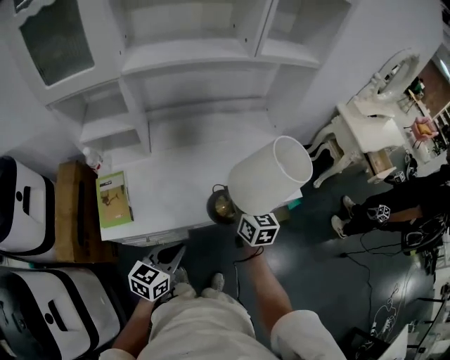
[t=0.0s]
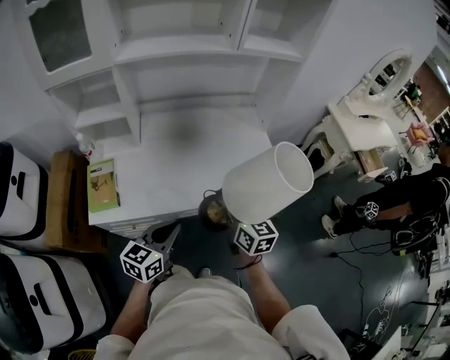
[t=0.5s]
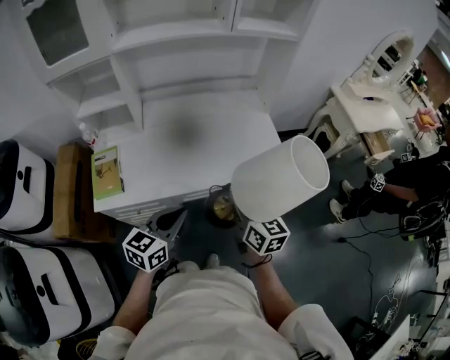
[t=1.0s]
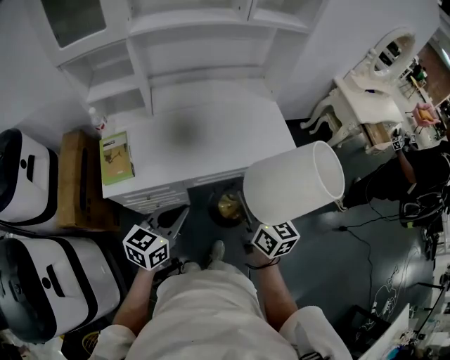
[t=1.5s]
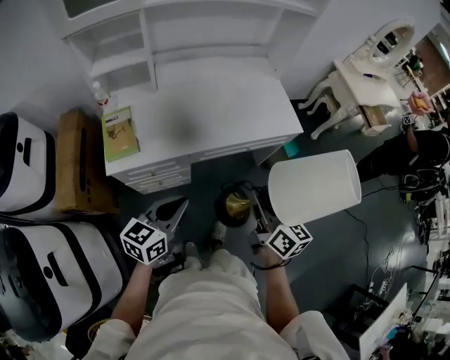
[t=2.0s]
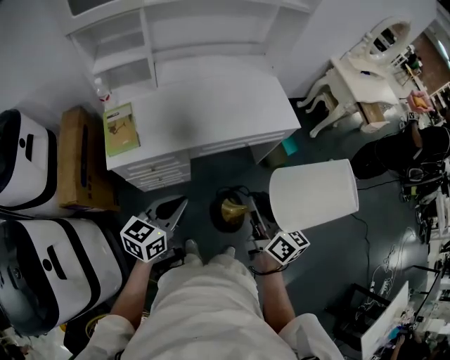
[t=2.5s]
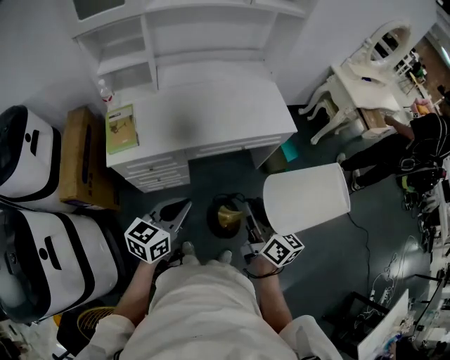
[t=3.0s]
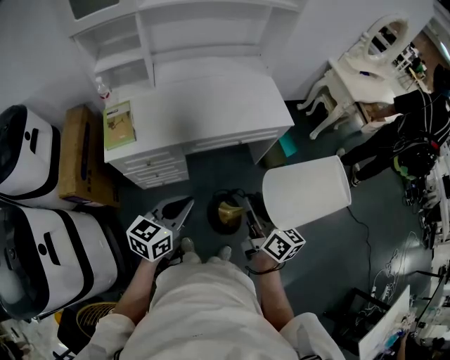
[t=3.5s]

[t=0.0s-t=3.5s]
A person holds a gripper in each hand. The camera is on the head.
t=0.0s to t=2.0s: The right gripper goes approximately 30 cm backward, while the left gripper shifts approximately 15 cm backward.
t=2.0s to t=3.5s: The right gripper goes roughly 10 cm backward and to the right, while the left gripper heads to the right and backward, covering about 10 cm.

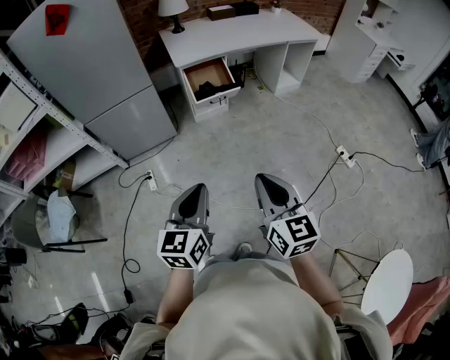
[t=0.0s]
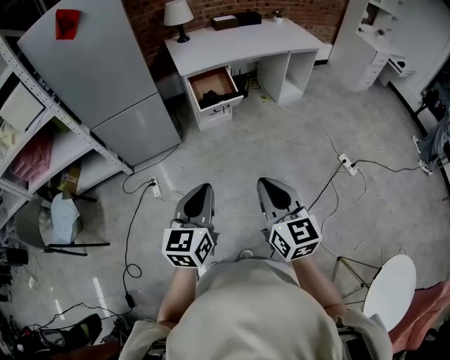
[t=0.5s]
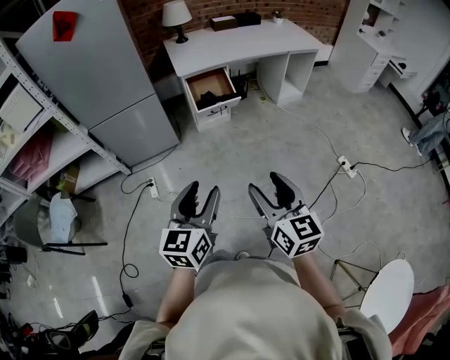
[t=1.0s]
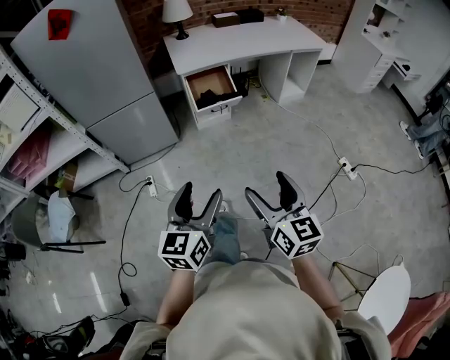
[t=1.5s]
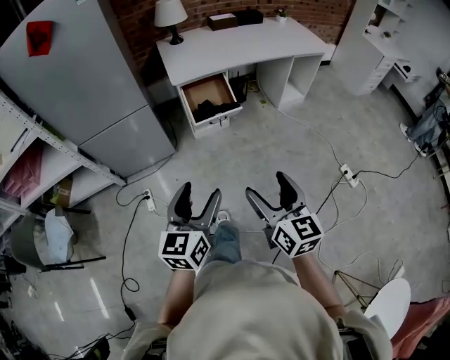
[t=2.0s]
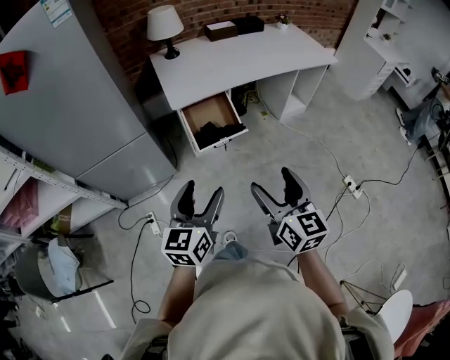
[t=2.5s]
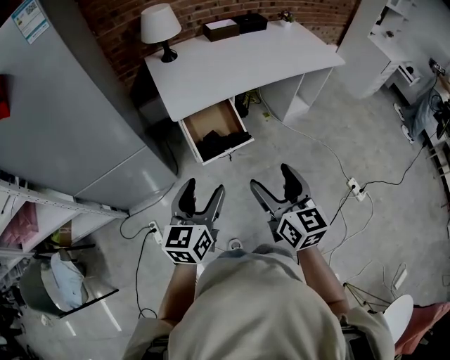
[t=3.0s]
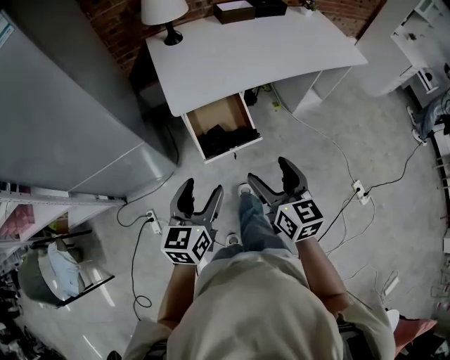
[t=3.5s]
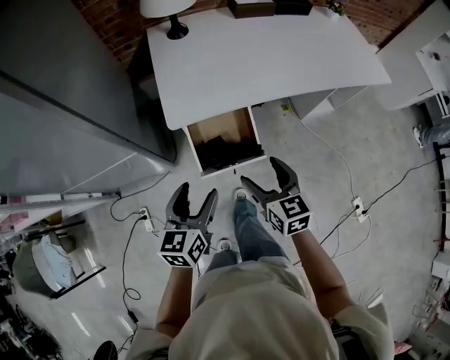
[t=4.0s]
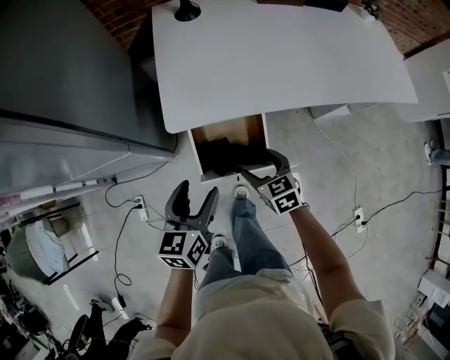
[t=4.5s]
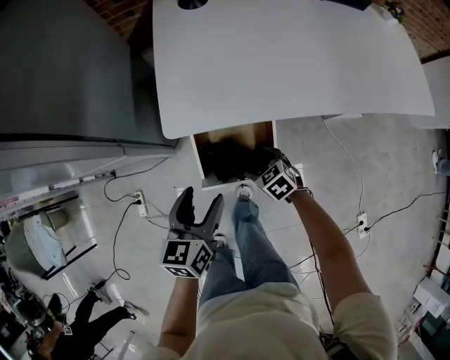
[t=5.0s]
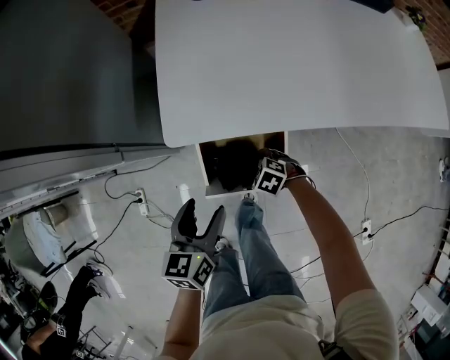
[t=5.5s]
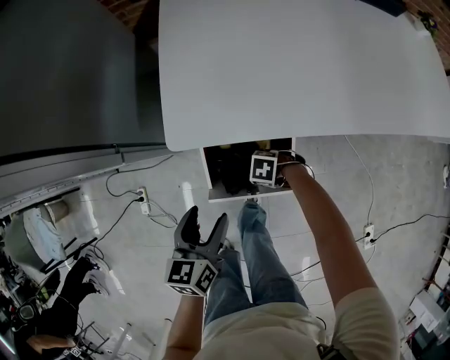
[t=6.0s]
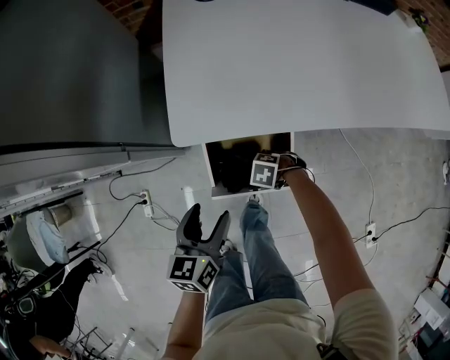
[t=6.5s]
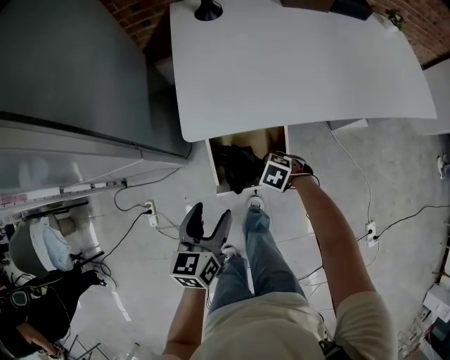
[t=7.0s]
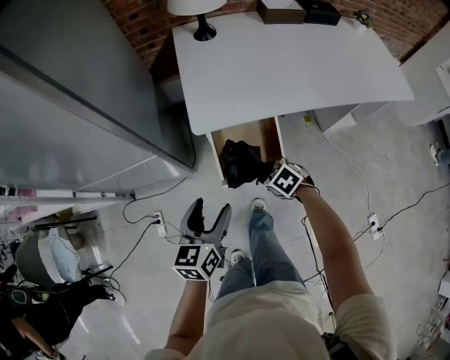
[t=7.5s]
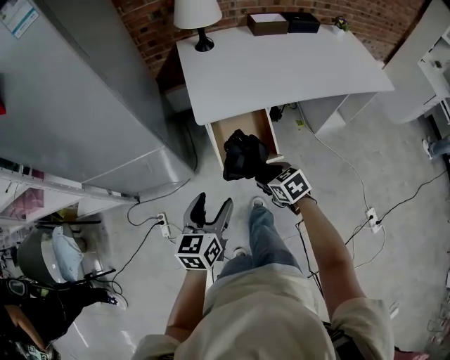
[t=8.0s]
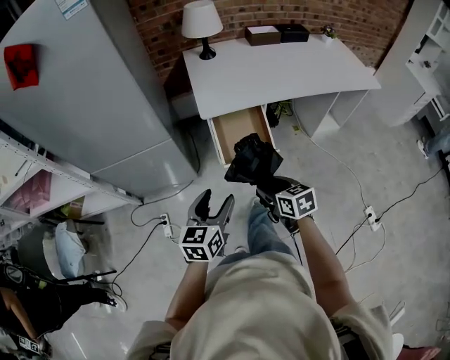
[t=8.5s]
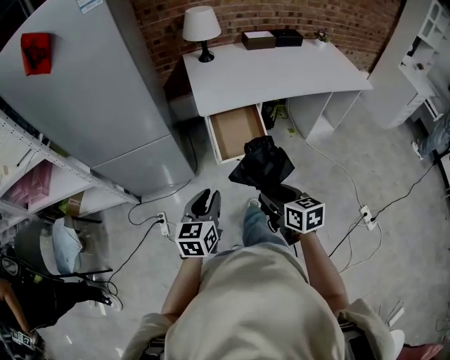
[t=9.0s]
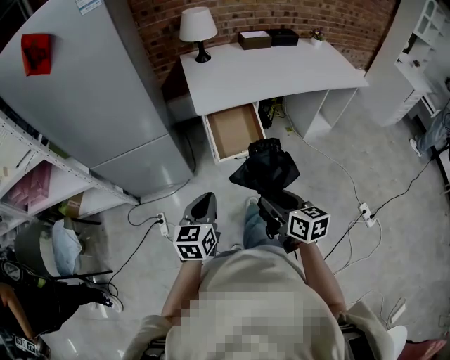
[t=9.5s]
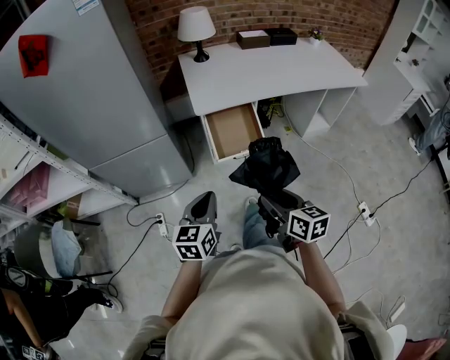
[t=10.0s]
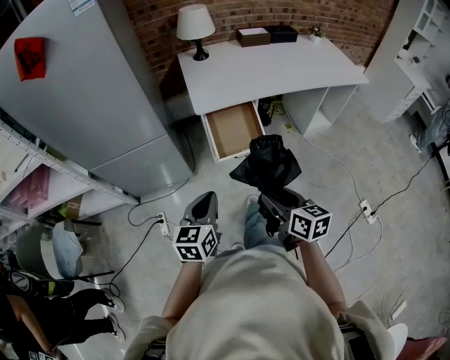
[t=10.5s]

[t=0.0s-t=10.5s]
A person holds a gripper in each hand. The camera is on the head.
t=0.0s to t=2.0s: The grippers both shift forward by some 15 cm. The right gripper opens its fingers. Meanwhile the left gripper opens its fingers.
t=2.0s to t=4.0s: The pair of grippers is taken forward, roughly 50 cm. The right gripper rotates some 20 degrees.
t=4.0s to t=6.5s: The right gripper goes about 35 cm downward, tilts its fingers approximately 50 degrees downward, and closes up, while the left gripper is displaced downward by some 15 cm.
t=6.5s to t=8.5s: The left gripper changes place by about 30 cm, and rotates roughly 20 degrees. Meanwhile the right gripper is displaced upward by roughly 35 cm, and tips its fingers upward by roughly 40 degrees.
t=8.5s to t=10.5s: The right gripper is displaced backward and upward by approximately 15 cm, and swivels some 20 degrees. Meanwhile the left gripper moves backward, about 5 cm, and closes up.

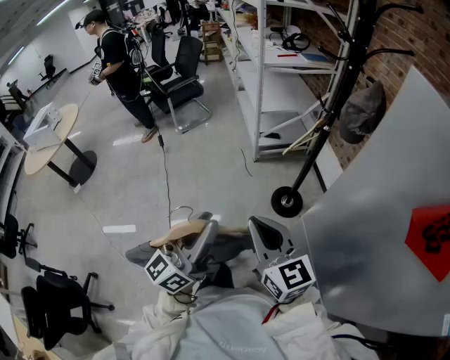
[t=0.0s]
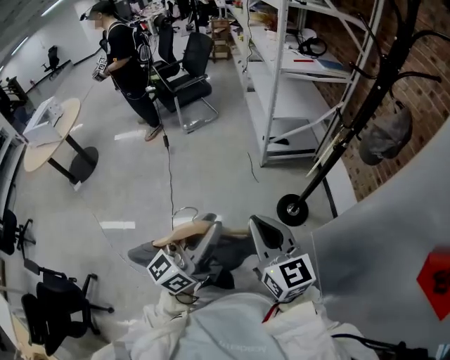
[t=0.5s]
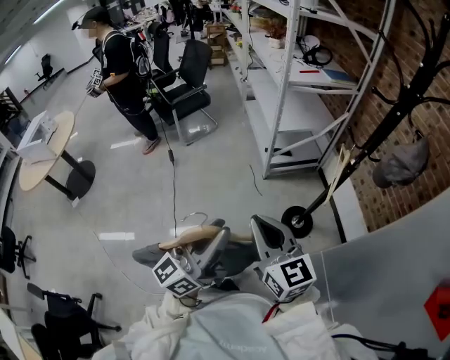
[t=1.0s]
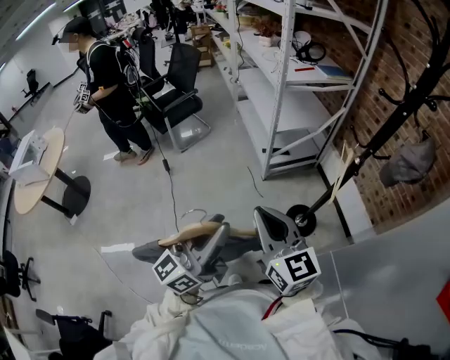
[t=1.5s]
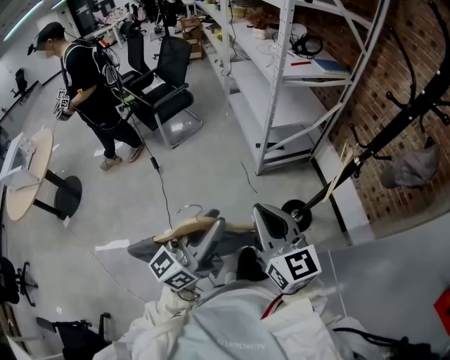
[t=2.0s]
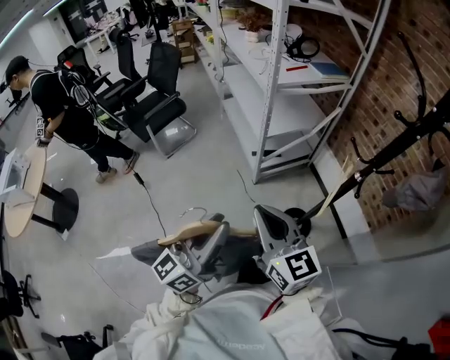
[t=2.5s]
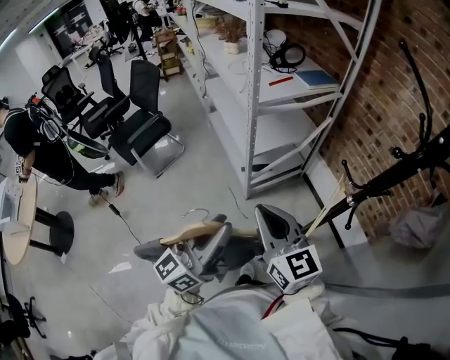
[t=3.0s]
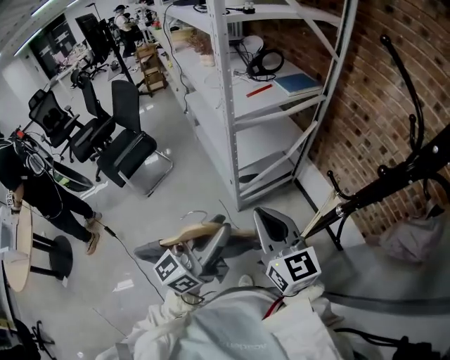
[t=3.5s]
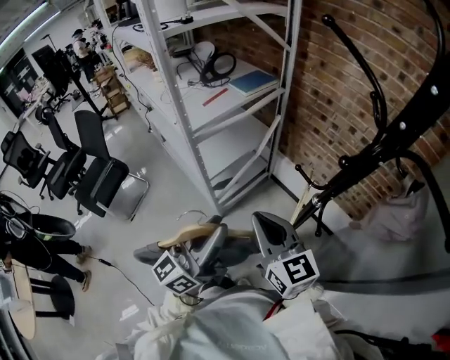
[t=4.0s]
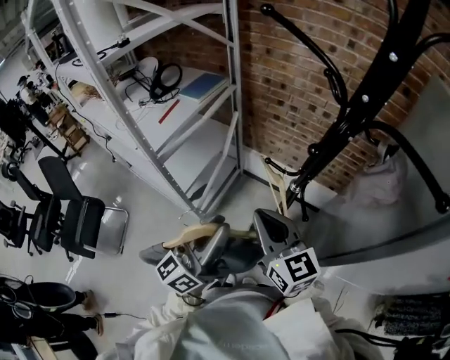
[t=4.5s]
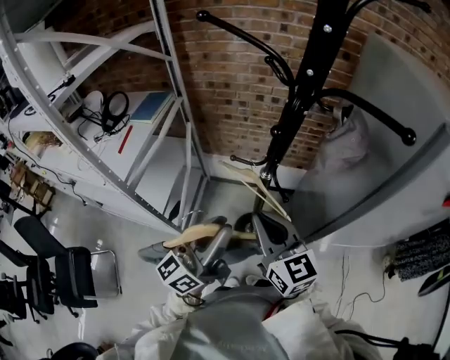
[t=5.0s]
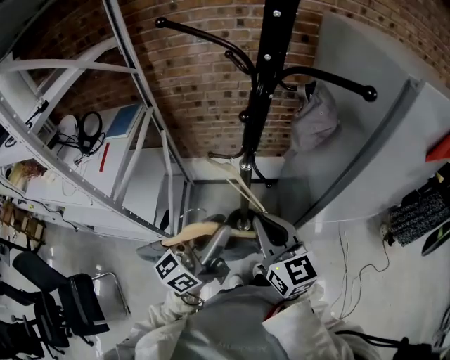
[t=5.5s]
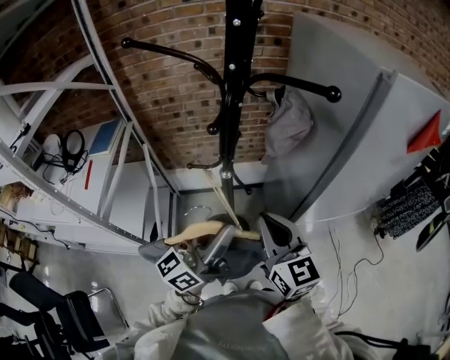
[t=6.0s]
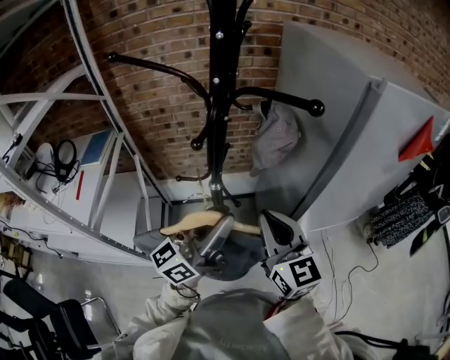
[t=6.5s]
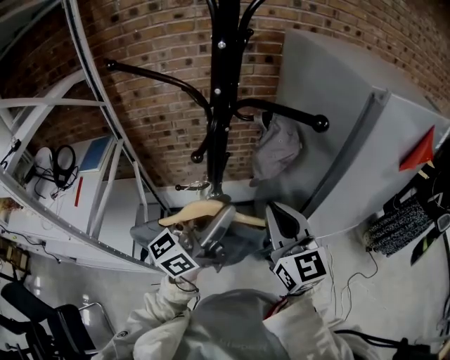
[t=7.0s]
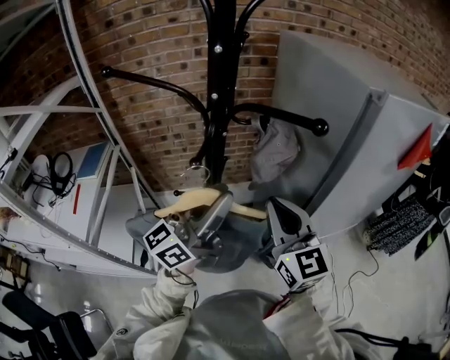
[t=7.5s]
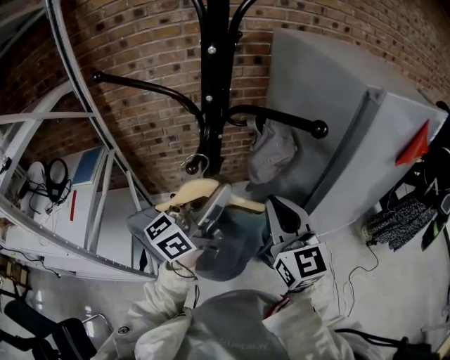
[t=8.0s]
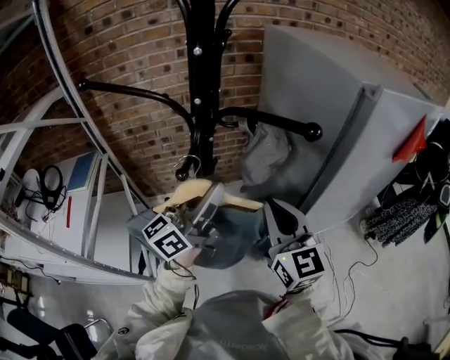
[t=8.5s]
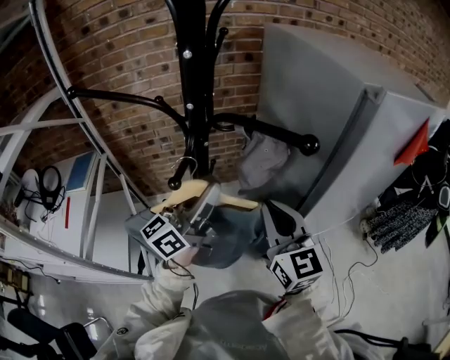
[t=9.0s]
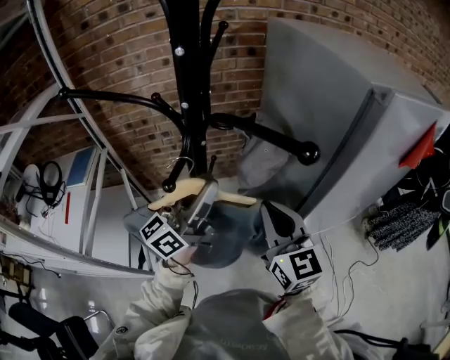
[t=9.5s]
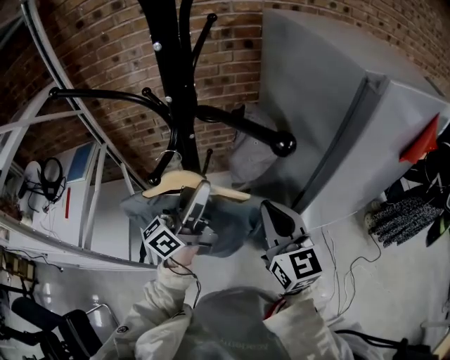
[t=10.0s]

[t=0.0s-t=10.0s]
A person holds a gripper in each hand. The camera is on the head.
t=0.0s to t=2.0s: Both grippers travel together forward and to the left, some 35 cm.
t=2.0s to t=4.0s: The two grippers go about 40 cm forward and to the right. The right gripper turns by roughly 20 degrees. Meanwhile the left gripper changes its angle by roughly 30 degrees.
t=4.0s to t=6.0s: The right gripper changes place by about 15 cm, and changes its angle by roughly 60 degrees; the left gripper changes place by approximately 15 cm, and rotates approximately 60 degrees.
t=6.0s to t=8.0s: Both grippers move forward and upward, some 15 cm.
t=8.0s to t=10.0s: The left gripper shifts approximately 5 cm downward. The right gripper moves approximately 5 cm.

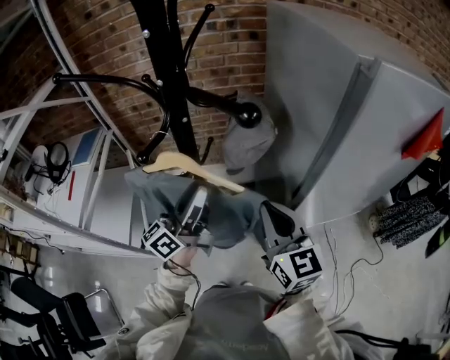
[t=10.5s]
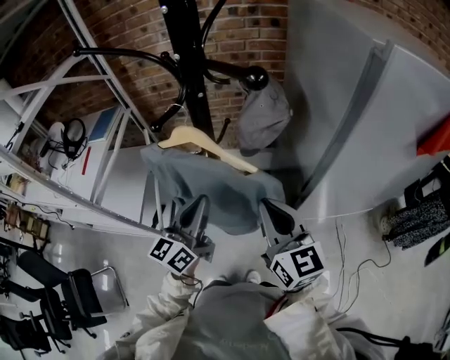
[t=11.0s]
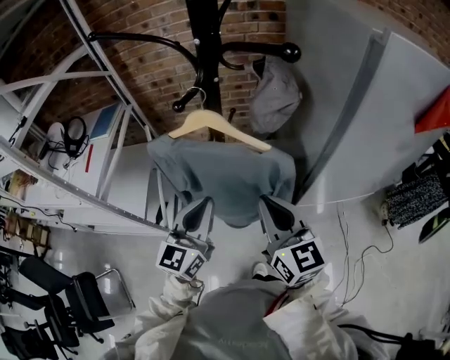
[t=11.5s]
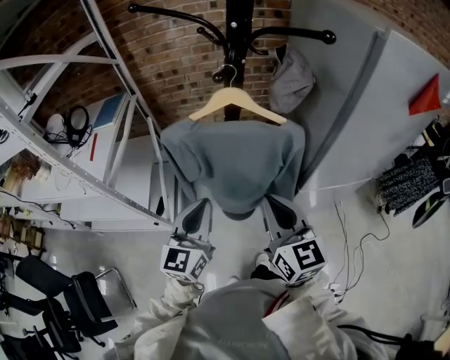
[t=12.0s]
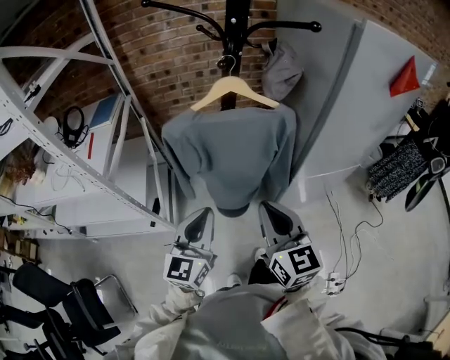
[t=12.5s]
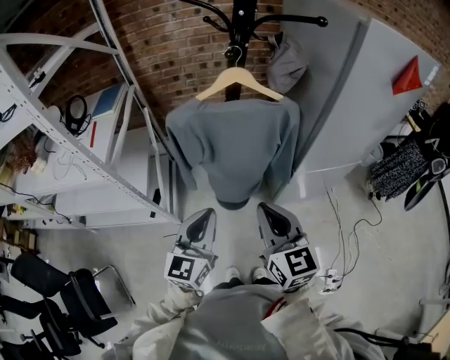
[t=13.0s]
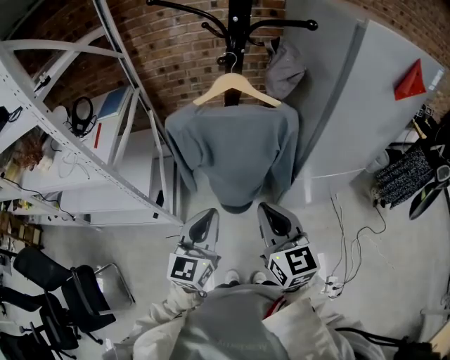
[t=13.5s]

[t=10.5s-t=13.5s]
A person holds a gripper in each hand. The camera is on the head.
t=10.5s to t=12.0s: Both grippers move backward and to the left, about 20 cm. The left gripper changes its angle by roughly 40 degrees, and closes up.
t=12.0s to t=13.5s: Both grippers move backward, about 10 cm.
